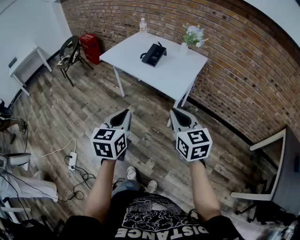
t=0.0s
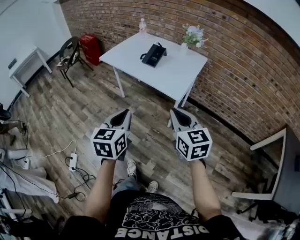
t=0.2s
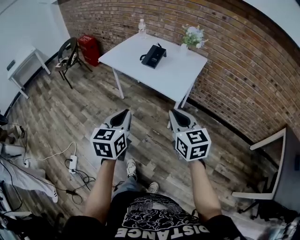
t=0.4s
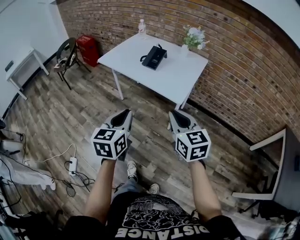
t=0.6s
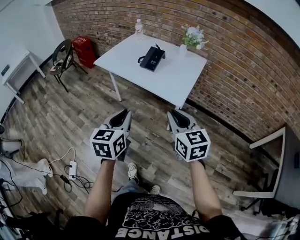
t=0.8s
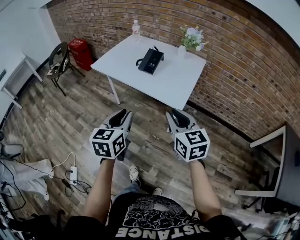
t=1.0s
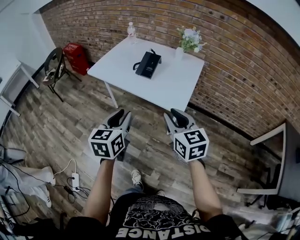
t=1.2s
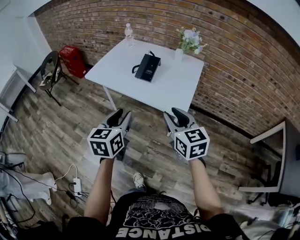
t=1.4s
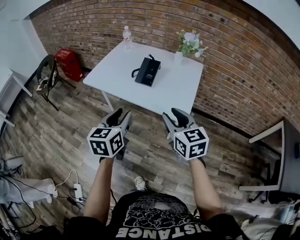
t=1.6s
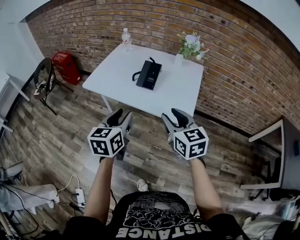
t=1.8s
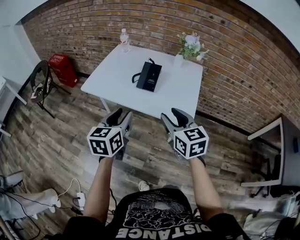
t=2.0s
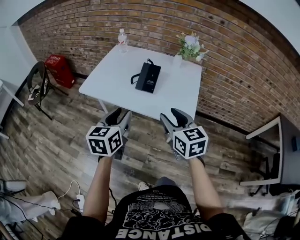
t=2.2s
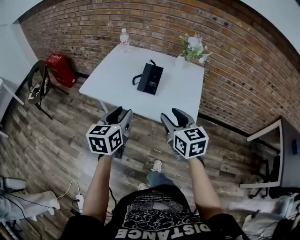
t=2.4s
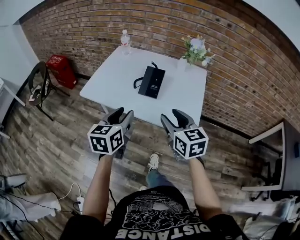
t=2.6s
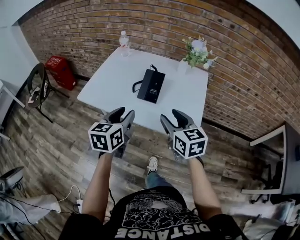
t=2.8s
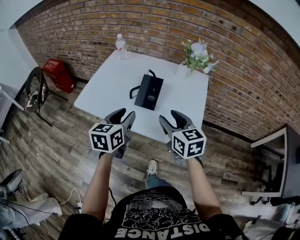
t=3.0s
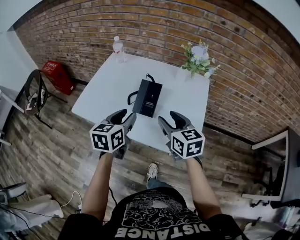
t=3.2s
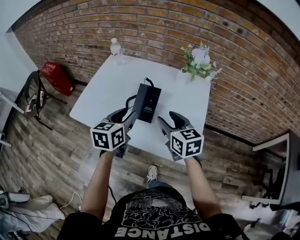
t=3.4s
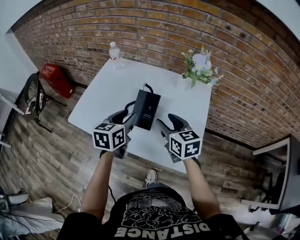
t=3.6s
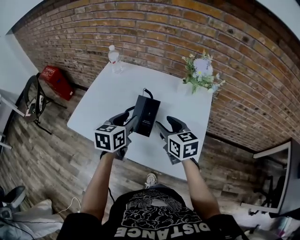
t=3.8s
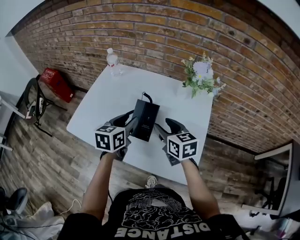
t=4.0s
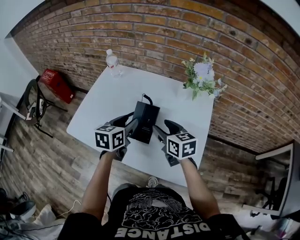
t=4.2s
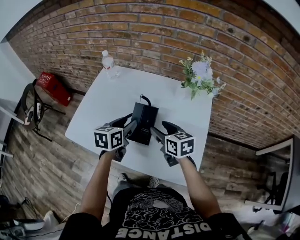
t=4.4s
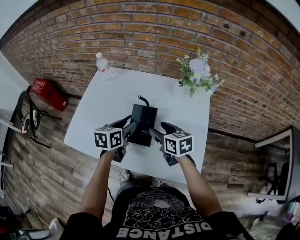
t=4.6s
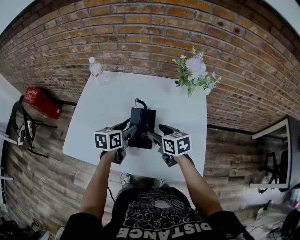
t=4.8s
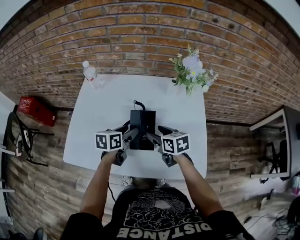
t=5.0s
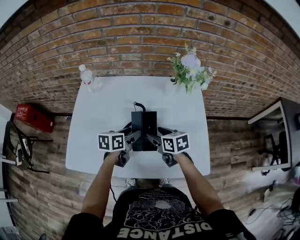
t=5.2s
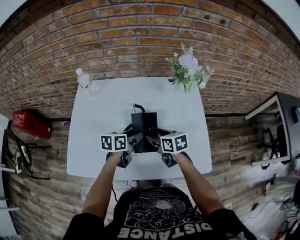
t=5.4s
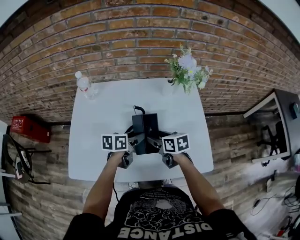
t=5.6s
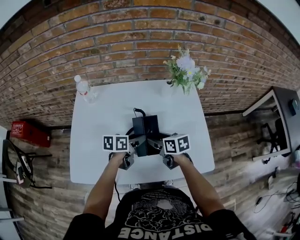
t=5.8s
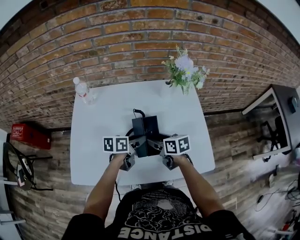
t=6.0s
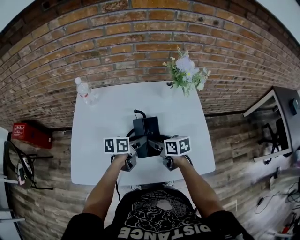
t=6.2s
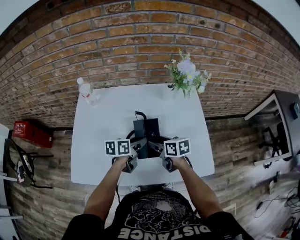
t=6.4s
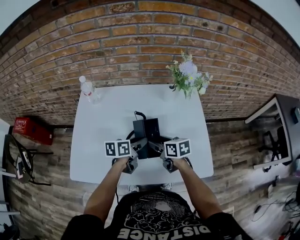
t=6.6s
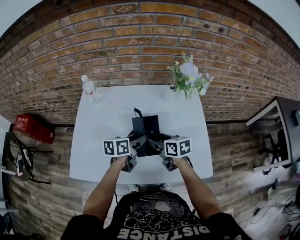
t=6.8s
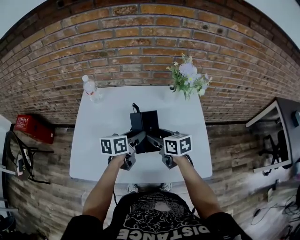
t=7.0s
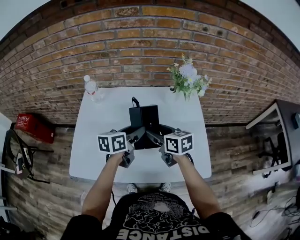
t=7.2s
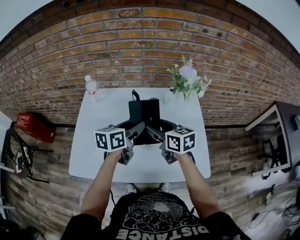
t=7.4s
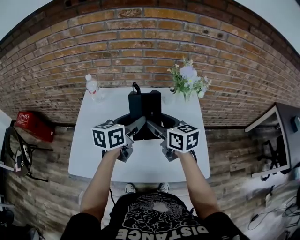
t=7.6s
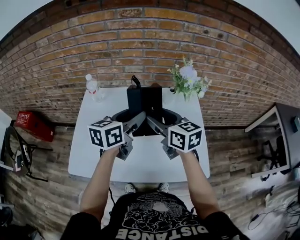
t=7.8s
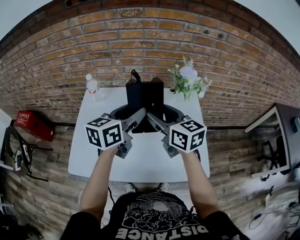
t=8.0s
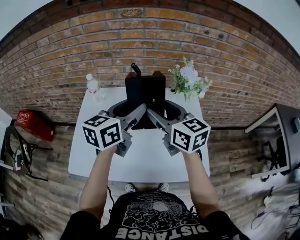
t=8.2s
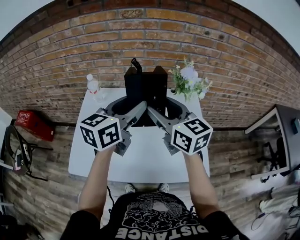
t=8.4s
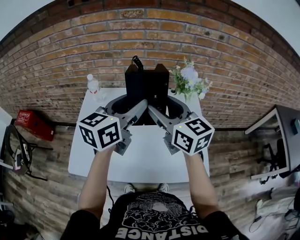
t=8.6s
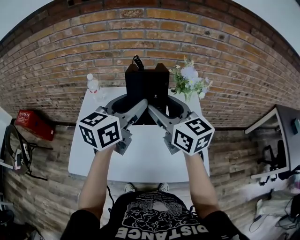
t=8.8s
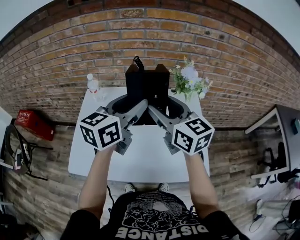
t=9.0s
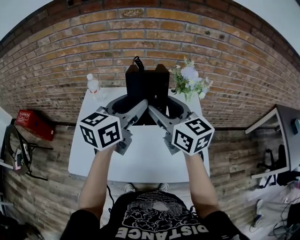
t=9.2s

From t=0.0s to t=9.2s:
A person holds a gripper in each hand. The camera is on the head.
From t=0.0s to t=1.6s: Both grippers travel together forward, approximately 20 cm. The left gripper opens. The right gripper opens up.
From t=1.6s to t=3.0s: Both grippers travel together forward, about 20 cm.
From t=3.0s to t=4.6s: The two grippers go roughly 20 cm forward and downward.
From t=4.6s to t=6.2s: Both grippers travel together downward, about 5 cm. The left gripper swivels some 30 degrees, while the right gripper turns by approximately 20 degrees.
From t=6.2s to t=7.6s: The grippers both shift upward by some 20 cm. The right gripper changes its angle by about 20 degrees, while the left gripper swivels approximately 30 degrees.
From t=7.6s to t=9.2s: The grippers both shift upward by about 10 cm.

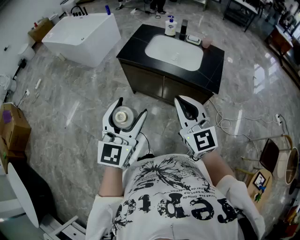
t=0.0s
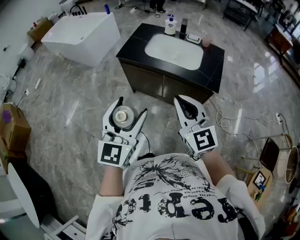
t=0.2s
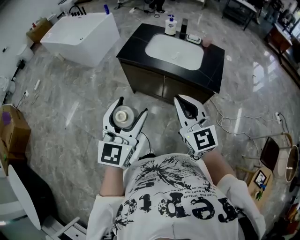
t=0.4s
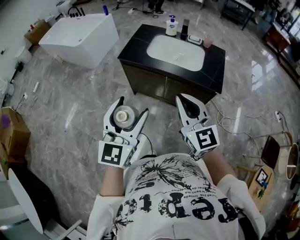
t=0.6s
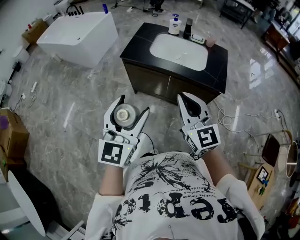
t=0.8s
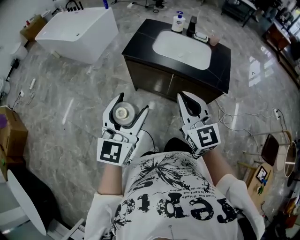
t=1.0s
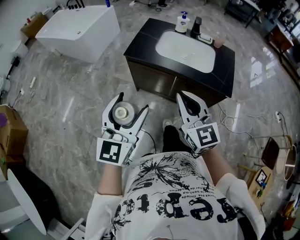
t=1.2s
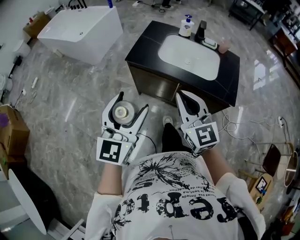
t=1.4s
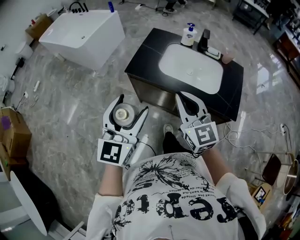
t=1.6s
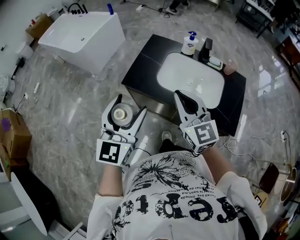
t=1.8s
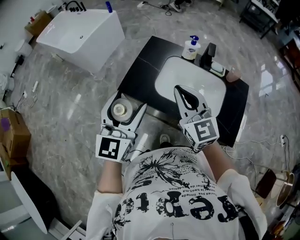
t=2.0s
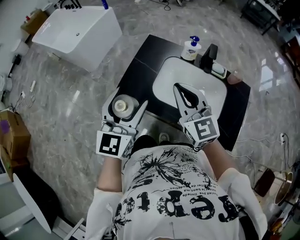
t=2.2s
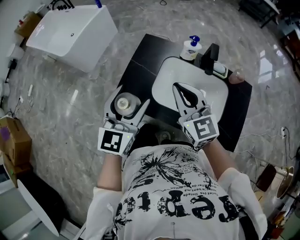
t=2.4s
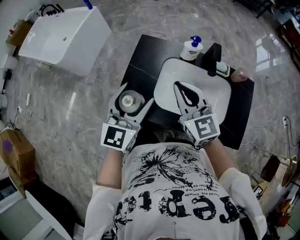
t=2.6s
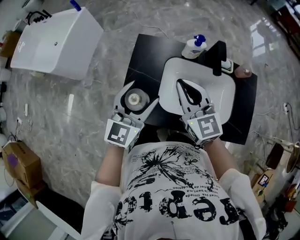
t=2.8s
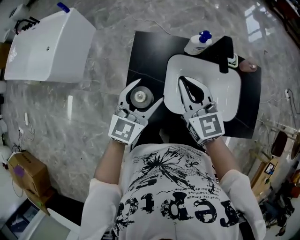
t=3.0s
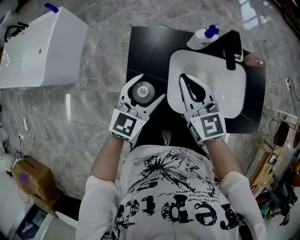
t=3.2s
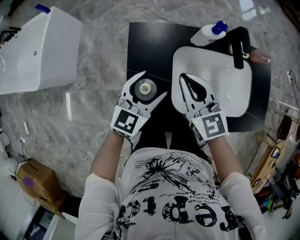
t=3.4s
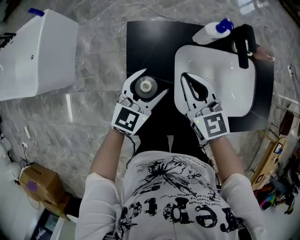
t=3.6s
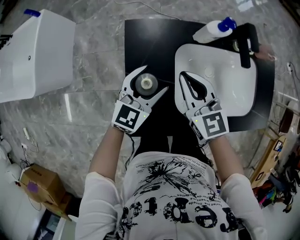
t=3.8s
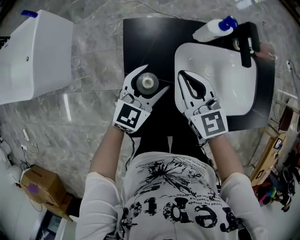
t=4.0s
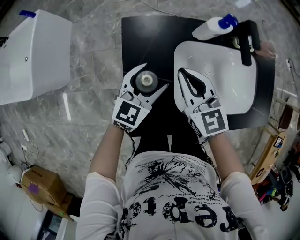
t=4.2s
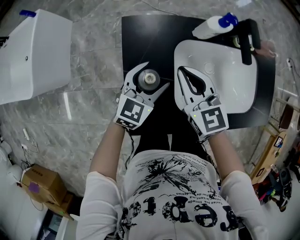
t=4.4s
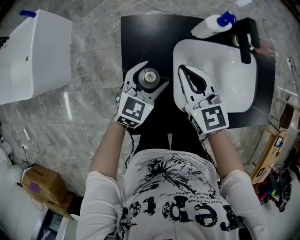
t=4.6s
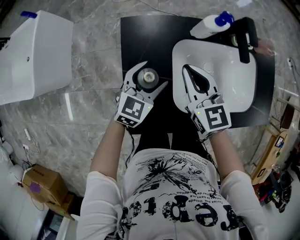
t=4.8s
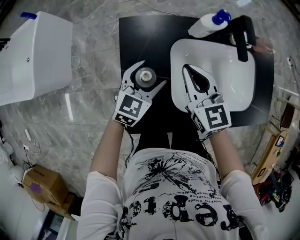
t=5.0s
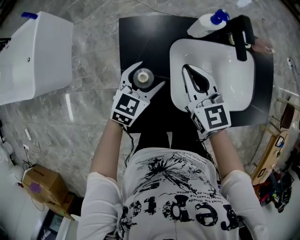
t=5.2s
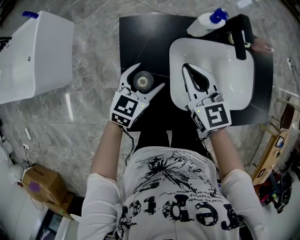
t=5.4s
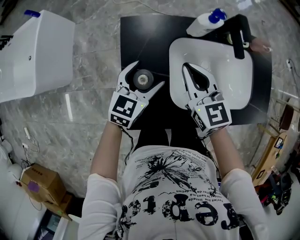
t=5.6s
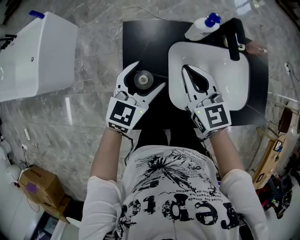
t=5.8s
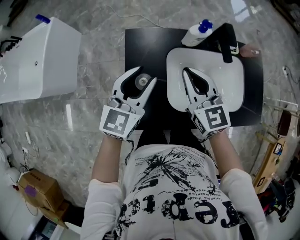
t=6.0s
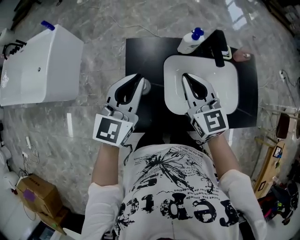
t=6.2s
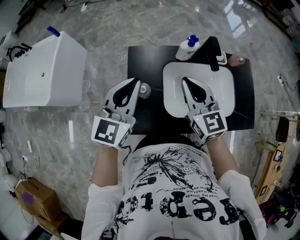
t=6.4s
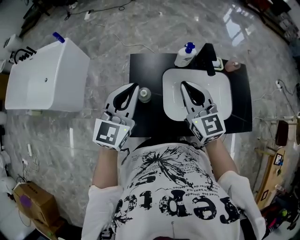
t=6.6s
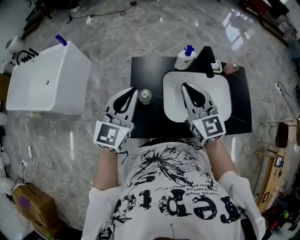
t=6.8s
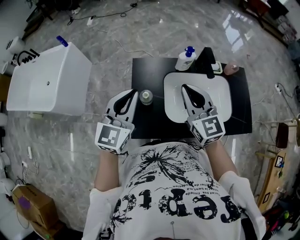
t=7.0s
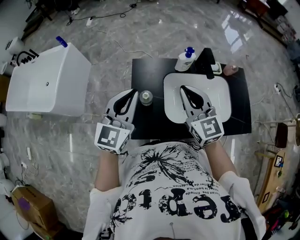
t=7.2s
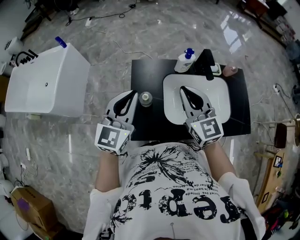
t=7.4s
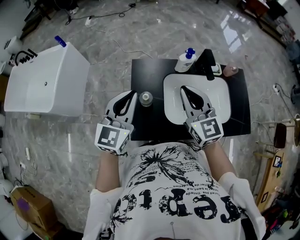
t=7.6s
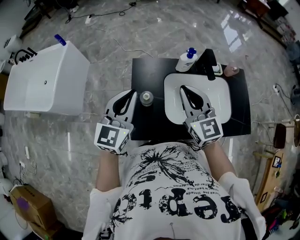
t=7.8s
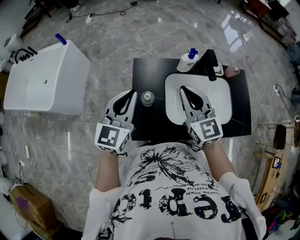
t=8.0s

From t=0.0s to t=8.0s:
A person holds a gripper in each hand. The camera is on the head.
From t=0.0s to t=1.6s: Both grippers move forward, some 25 cm.
From t=1.6s to t=3.2s: The two grippers travel together, about 50 cm. The right gripper changes its angle by approximately 20 degrees. The left gripper changes its angle by some 40 degrees.
From t=3.2s to t=4.8s: The left gripper is displaced downward and forward by roughly 15 cm. The right gripper shifts approximately 10 cm downward.
From t=4.8s to t=6.4s: The left gripper travels upward by roughly 25 cm, rotates approximately 30 degrees, and closes up. Meanwhile the right gripper heads upward and backward, covering about 20 cm.
From t=6.4s to t=8.0s: The right gripper changes place by about 5 cm. Meanwhile the left gripper moves approximately 5 cm.

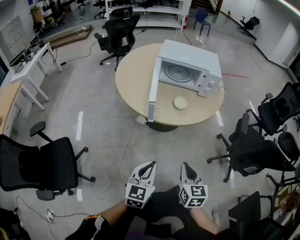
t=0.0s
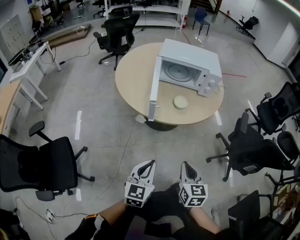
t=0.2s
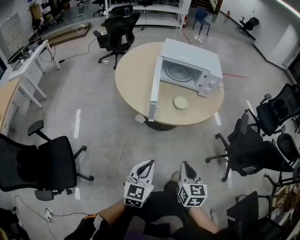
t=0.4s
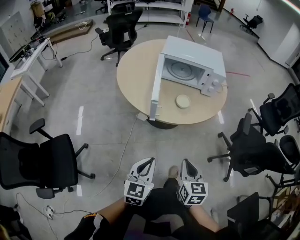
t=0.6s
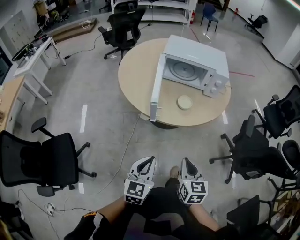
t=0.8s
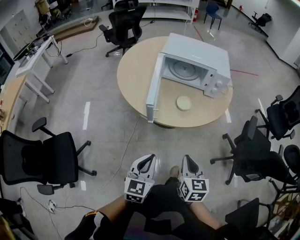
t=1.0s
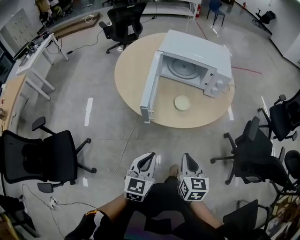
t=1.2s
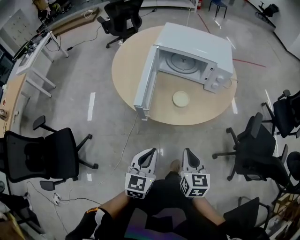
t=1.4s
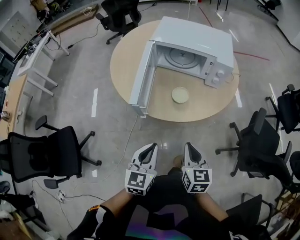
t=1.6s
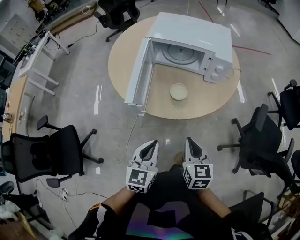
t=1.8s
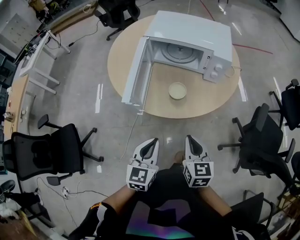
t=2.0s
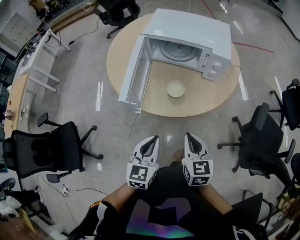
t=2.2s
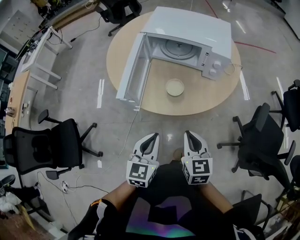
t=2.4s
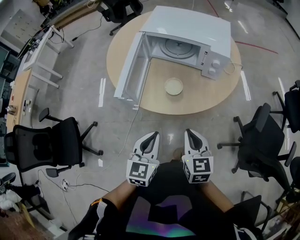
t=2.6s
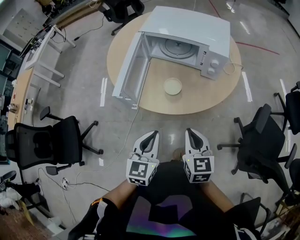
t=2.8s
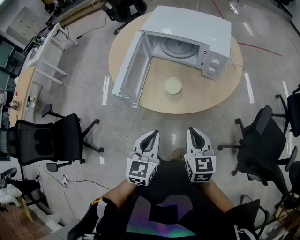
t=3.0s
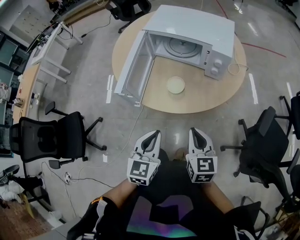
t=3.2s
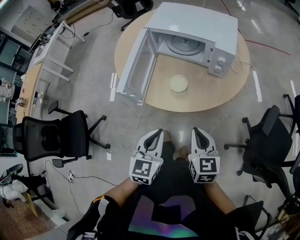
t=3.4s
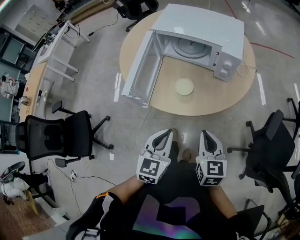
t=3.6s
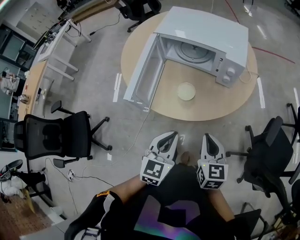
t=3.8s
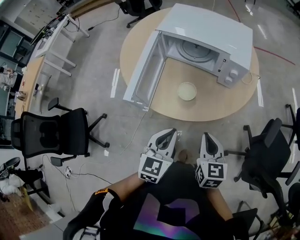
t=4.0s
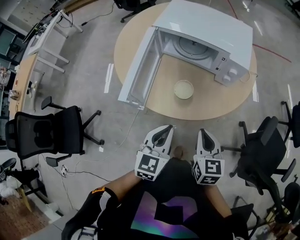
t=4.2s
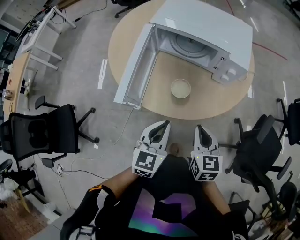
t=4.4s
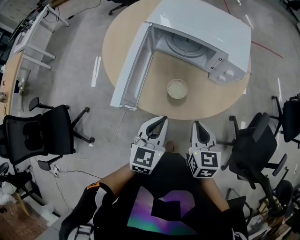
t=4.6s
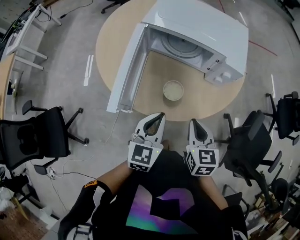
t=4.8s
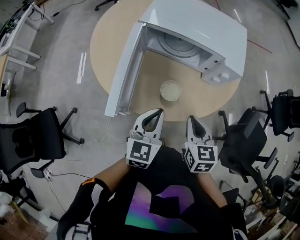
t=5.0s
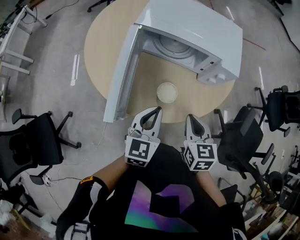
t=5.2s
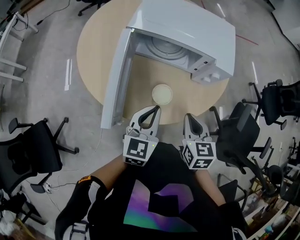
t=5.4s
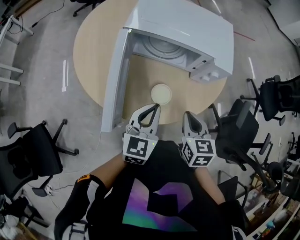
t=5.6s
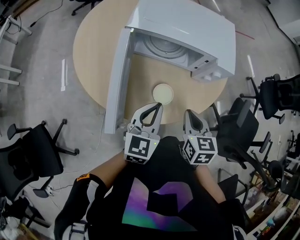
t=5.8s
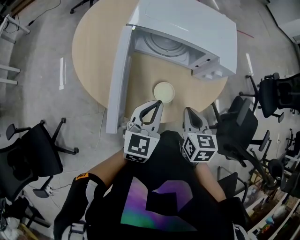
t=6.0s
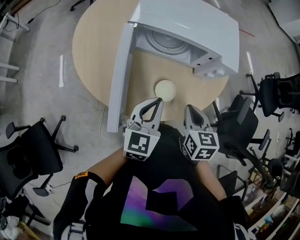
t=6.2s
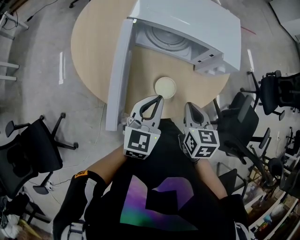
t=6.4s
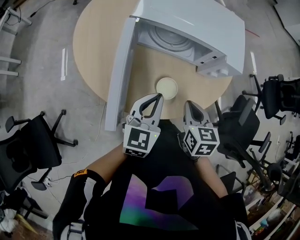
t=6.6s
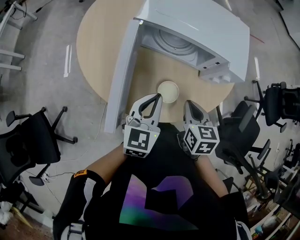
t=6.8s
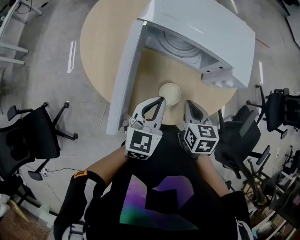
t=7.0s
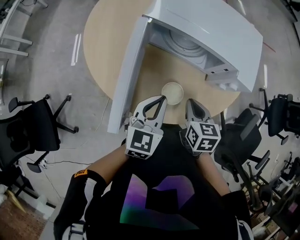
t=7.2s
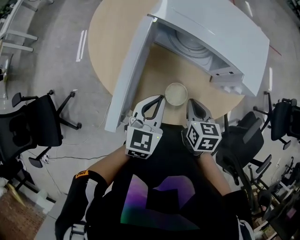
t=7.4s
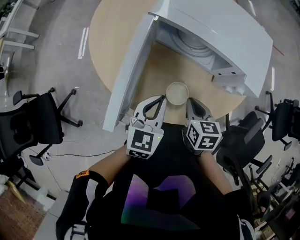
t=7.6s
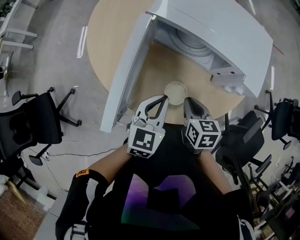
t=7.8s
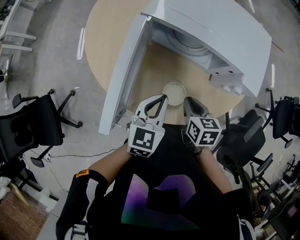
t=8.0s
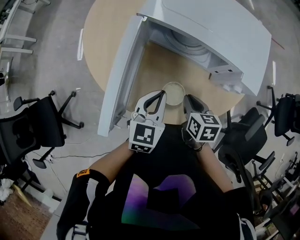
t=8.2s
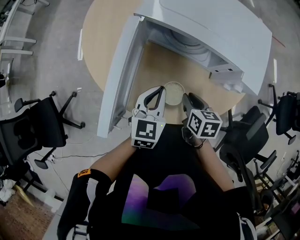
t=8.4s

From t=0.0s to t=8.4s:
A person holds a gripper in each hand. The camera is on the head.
From t=0.0s to t=1.4s: Both grippers travel together forward, about 15 cm.
From t=1.4s to t=2.8s: The left gripper heads to the right, covering some 10 cm. The right gripper is displaced to the right and forward by roughly 10 cm.
From t=2.8s to t=4.2s: Both grippers travel together forward, some 5 cm.
From t=4.2s to t=5.6s: Both grippers move forward, roughly 15 cm.
From t=5.6s to t=7.0s: The right gripper shifts approximately 5 cm forward.
From t=7.0s to t=8.4s: The right gripper heads downward, covering about 5 cm, while the left gripper heads downward and forward, covering roughly 5 cm.
